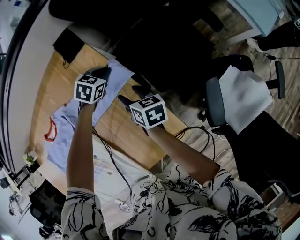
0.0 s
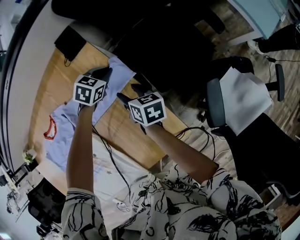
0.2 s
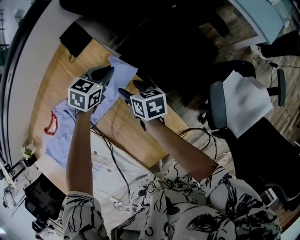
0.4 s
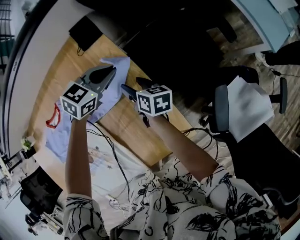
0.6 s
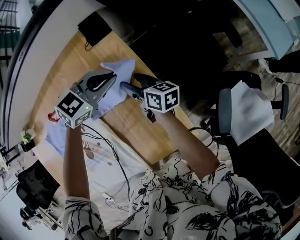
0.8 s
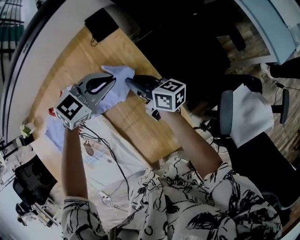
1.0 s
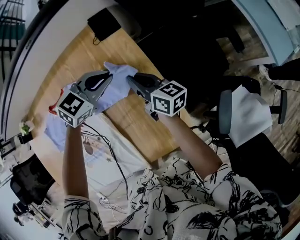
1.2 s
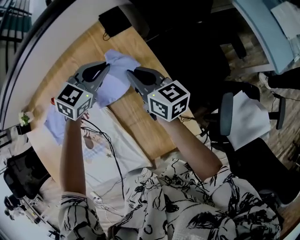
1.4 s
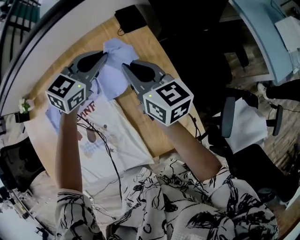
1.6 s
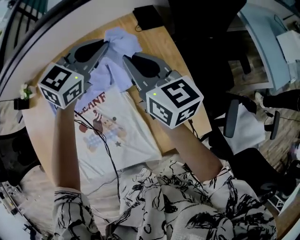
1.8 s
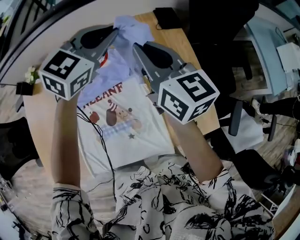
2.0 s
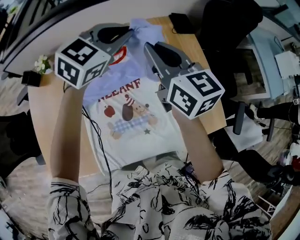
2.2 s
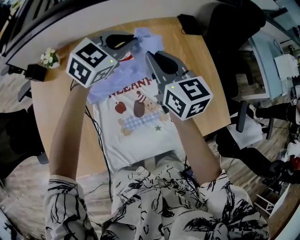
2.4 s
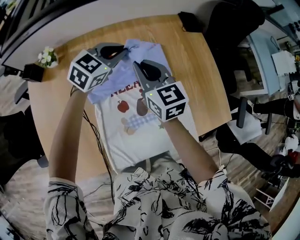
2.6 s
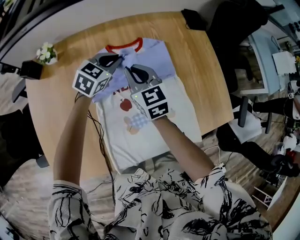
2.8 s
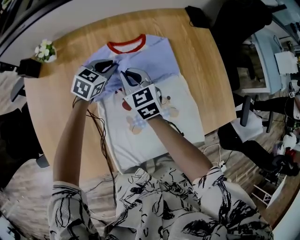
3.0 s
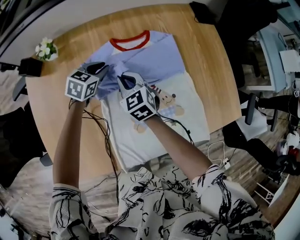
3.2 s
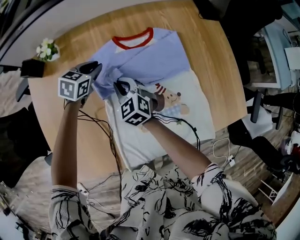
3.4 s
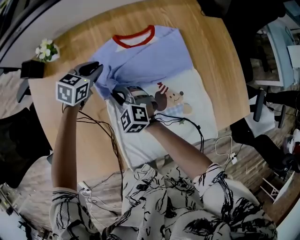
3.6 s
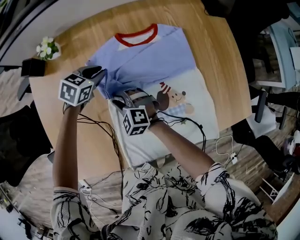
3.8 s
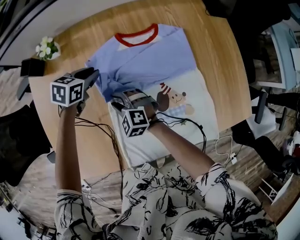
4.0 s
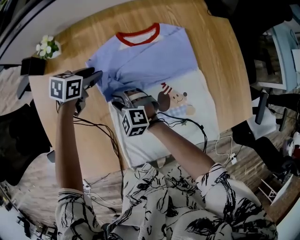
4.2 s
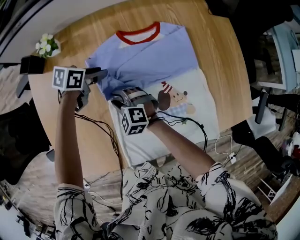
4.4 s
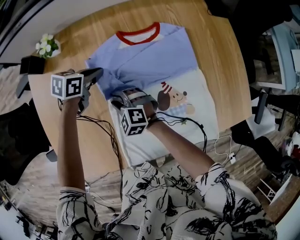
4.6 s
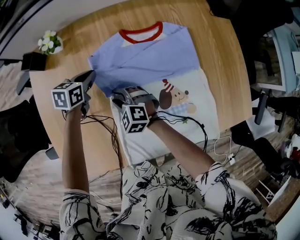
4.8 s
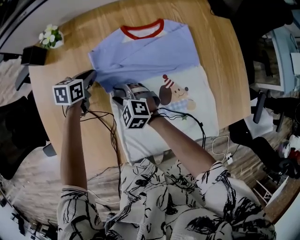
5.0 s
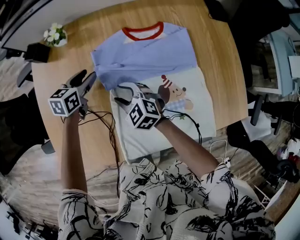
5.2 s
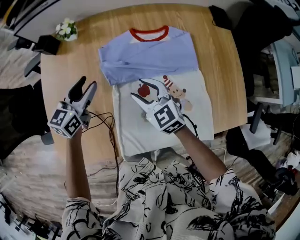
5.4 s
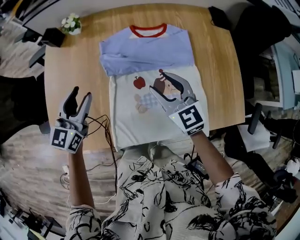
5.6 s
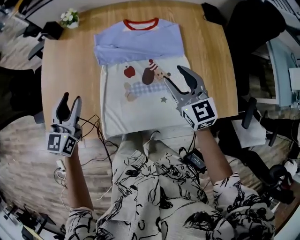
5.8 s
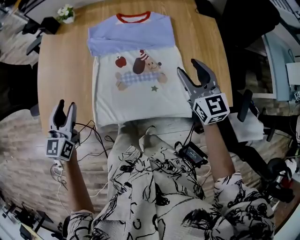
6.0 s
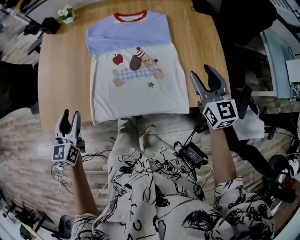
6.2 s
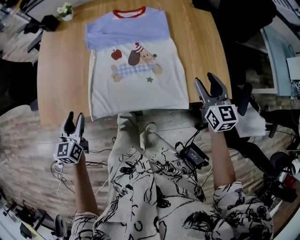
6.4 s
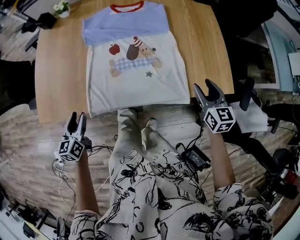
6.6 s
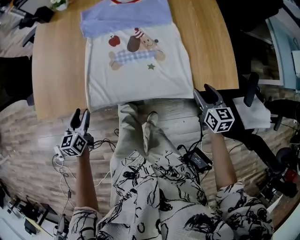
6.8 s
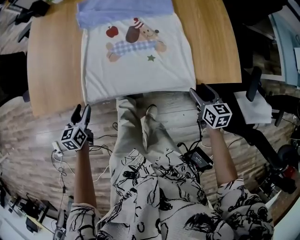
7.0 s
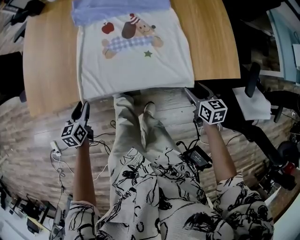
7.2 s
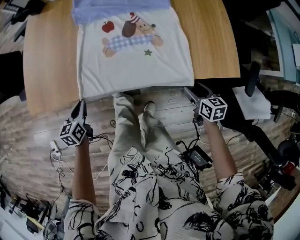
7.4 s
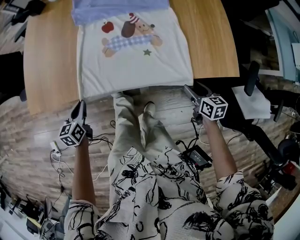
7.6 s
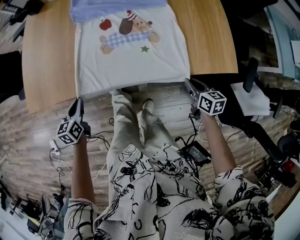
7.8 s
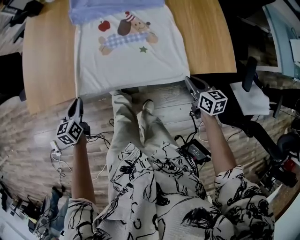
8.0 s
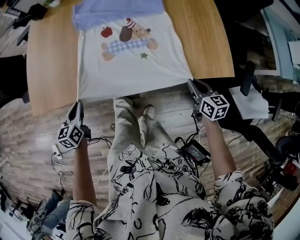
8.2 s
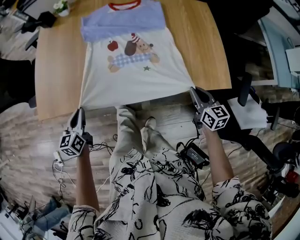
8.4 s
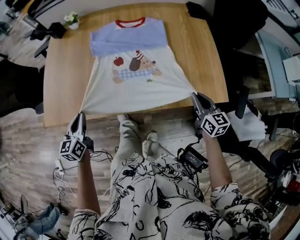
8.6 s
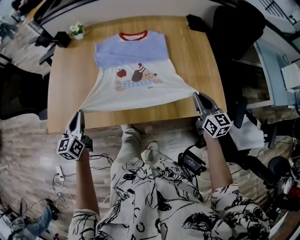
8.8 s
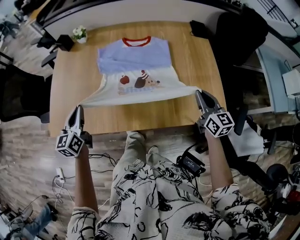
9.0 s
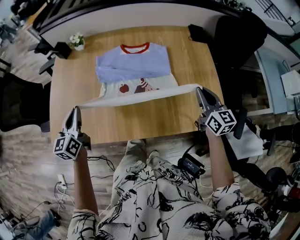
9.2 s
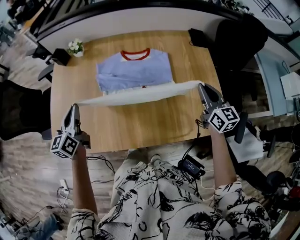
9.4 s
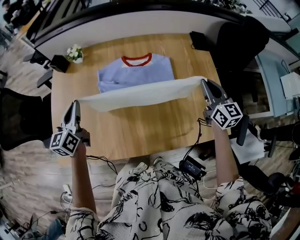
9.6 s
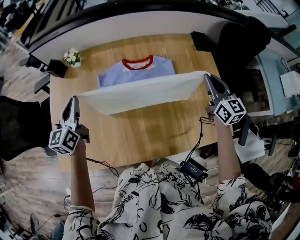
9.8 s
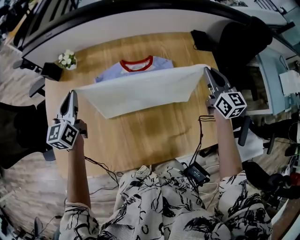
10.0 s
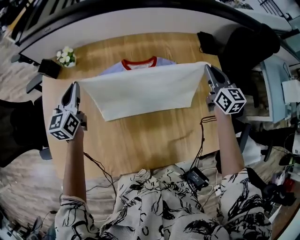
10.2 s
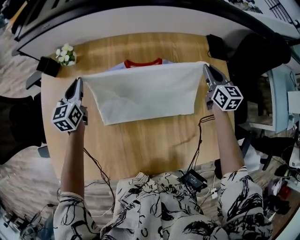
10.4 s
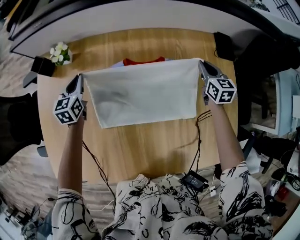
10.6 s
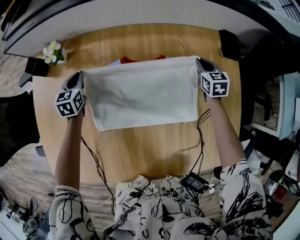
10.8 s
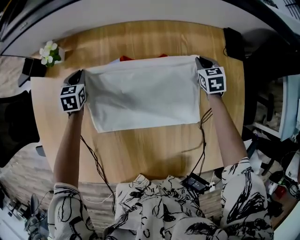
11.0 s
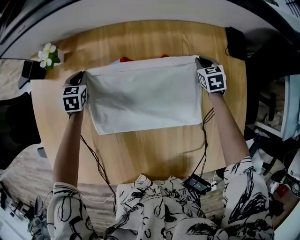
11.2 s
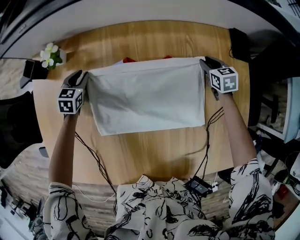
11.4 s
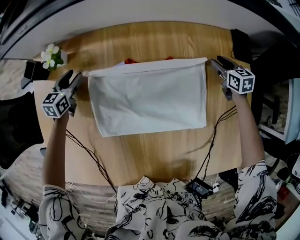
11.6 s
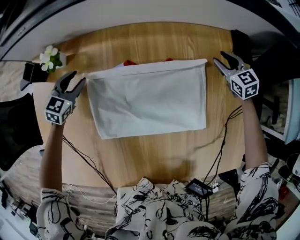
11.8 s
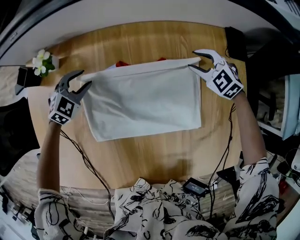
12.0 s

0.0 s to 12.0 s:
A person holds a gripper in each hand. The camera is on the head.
0.0 to 1.6 s: The two grippers go roughly 30 cm upward and to the left. The right gripper swivels about 40 degrees, and closes its fingers; the left gripper tips its fingers upward by some 30 degrees.
1.6 to 3.0 s: Both grippers are carried to the left, approximately 50 cm. The right gripper rotates roughly 40 degrees.
3.0 to 4.4 s: The right gripper shifts approximately 20 cm downward, to the left and backward, rotates approximately 40 degrees, and opens its fingers; the left gripper travels to the left and downward by roughly 10 cm, and rotates some 40 degrees.
4.4 to 6.0 s: The right gripper shifts about 40 cm to the right and upward, and swivels about 50 degrees. The left gripper is displaced backward and upward by some 40 cm, rotates roughly 60 degrees, and closes, then opens again.
6.0 to 7.6 s: Both grippers travel together downward and backward, approximately 30 cm. The right gripper turns by about 40 degrees. The left gripper changes its angle by some 30 degrees, and closes up.
7.6 to 9.0 s: The two grippers go some 30 cm upward and forward. The left gripper changes its angle by about 30 degrees. The right gripper changes its angle by some 30 degrees, and closes its fingers.
9.0 to 10.4 s: The two grippers go approximately 40 cm forward.
10.4 to 12.0 s: The right gripper is displaced downward, forward and to the left by approximately 20 cm, twists about 50 degrees counterclockwise, seen from behind, and opens up. Meanwhile the left gripper goes some 20 cm downward, forward and to the right, twists some 50 degrees clockwise, seen from behind, and opens.

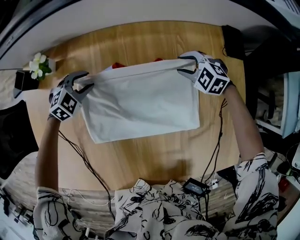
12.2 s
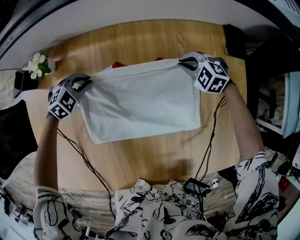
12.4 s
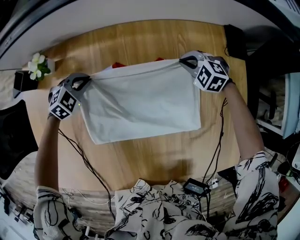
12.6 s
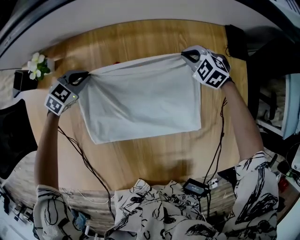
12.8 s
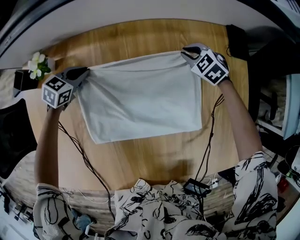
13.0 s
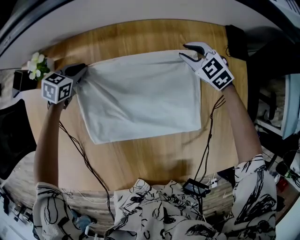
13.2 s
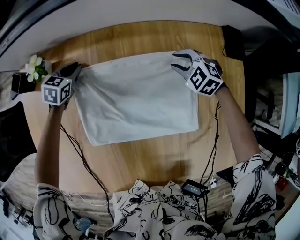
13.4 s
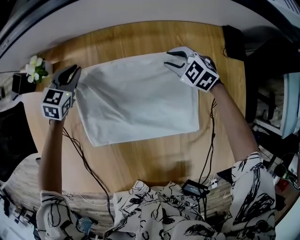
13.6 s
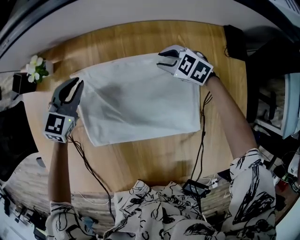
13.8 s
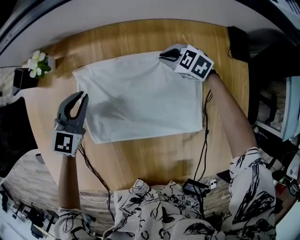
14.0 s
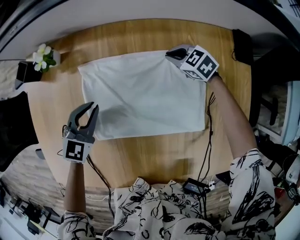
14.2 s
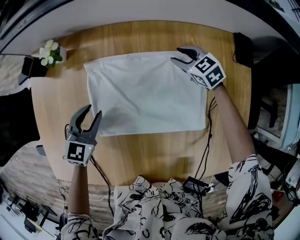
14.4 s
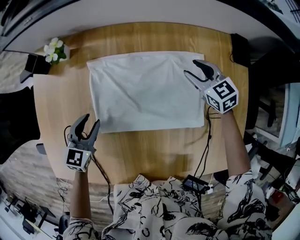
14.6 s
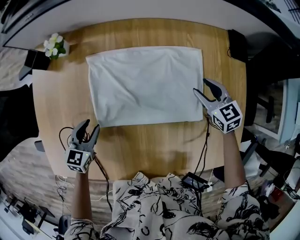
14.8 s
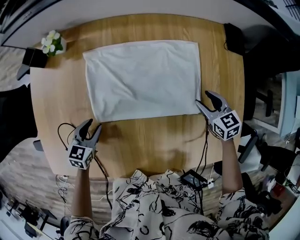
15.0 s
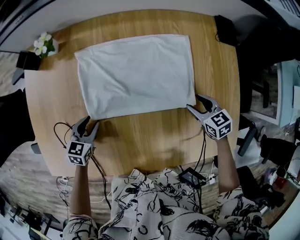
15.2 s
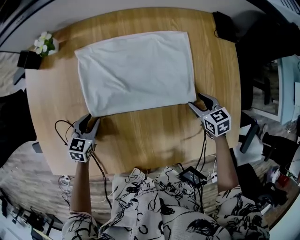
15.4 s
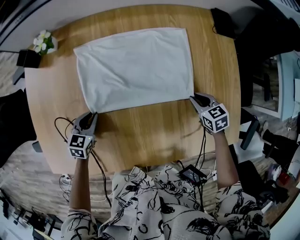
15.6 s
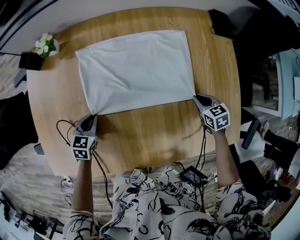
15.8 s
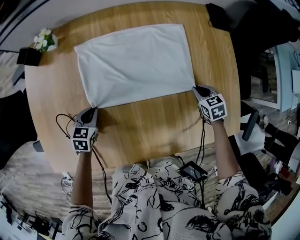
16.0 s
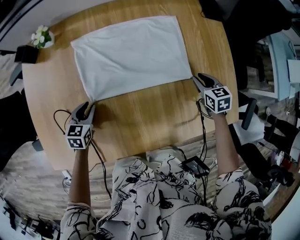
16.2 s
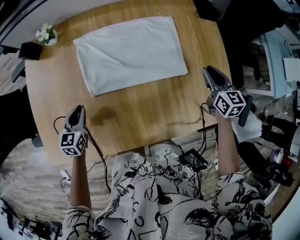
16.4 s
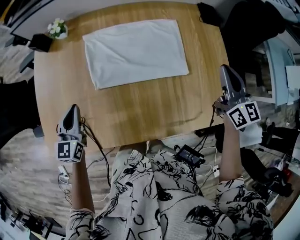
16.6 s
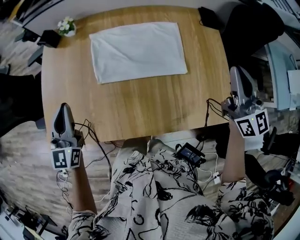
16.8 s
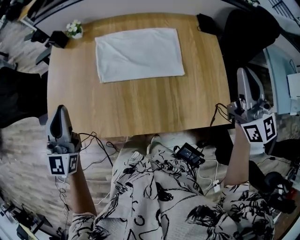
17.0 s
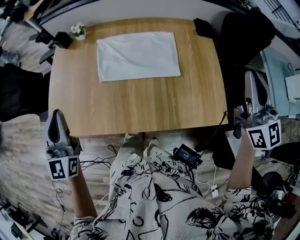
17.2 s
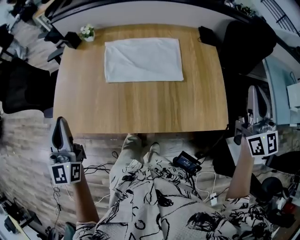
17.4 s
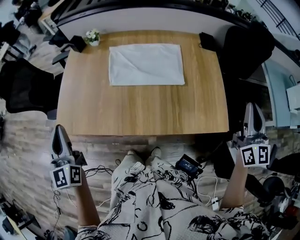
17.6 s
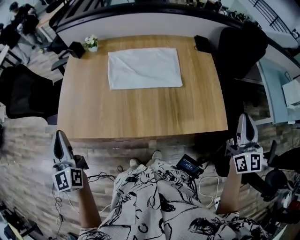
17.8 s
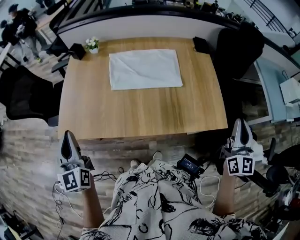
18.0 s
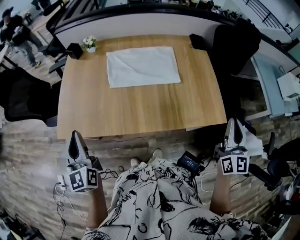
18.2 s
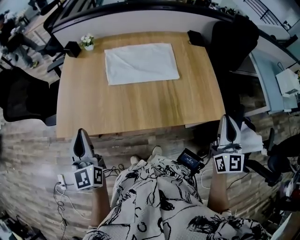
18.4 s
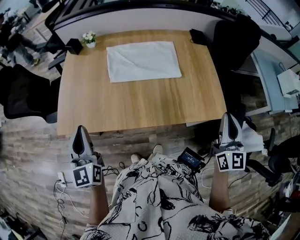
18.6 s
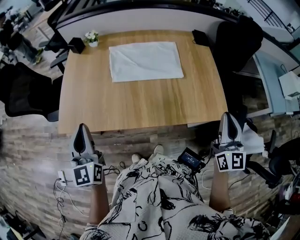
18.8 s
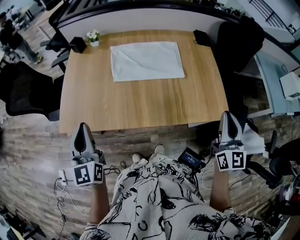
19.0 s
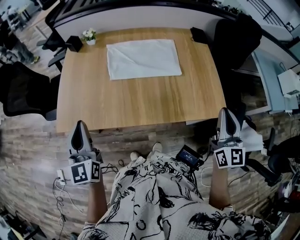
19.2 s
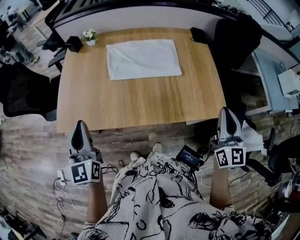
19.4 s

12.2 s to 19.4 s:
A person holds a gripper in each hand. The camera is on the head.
12.2 to 13.6 s: The left gripper heads forward, covering about 5 cm, and changes its angle by approximately 40 degrees. Meanwhile the right gripper closes and opens again.
13.6 to 15.0 s: The two grippers go some 25 cm backward. The right gripper turns by roughly 40 degrees, and closes, then reopens.
15.0 to 16.6 s: Both grippers travel together upward and backward, approximately 20 cm. The right gripper tilts its fingers some 30 degrees upward, and closes up. Meanwhile the left gripper rotates about 30 degrees, and closes.
16.6 to 18.0 s: The right gripper travels backward by approximately 35 cm, and swivels roughly 20 degrees. Meanwhile the left gripper goes some 35 cm backward and upward, and turns by approximately 30 degrees.
18.0 to 19.4 s: The right gripper heads to the left, covering some 10 cm.

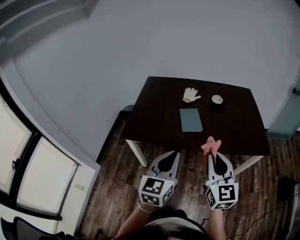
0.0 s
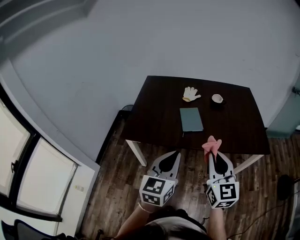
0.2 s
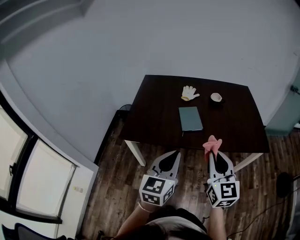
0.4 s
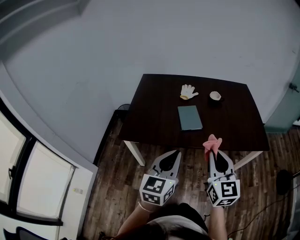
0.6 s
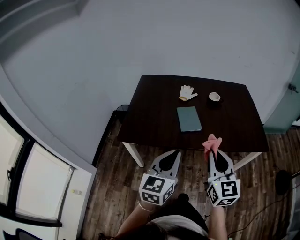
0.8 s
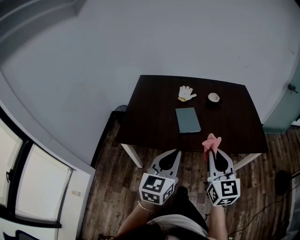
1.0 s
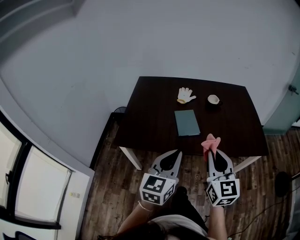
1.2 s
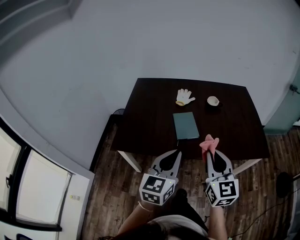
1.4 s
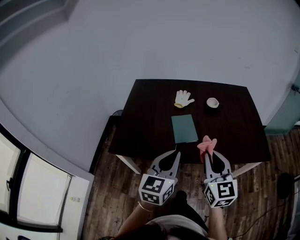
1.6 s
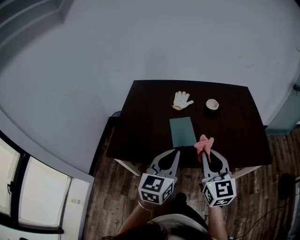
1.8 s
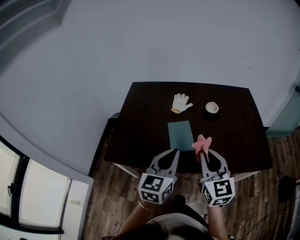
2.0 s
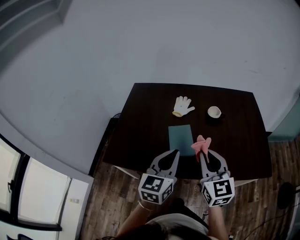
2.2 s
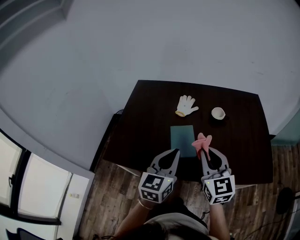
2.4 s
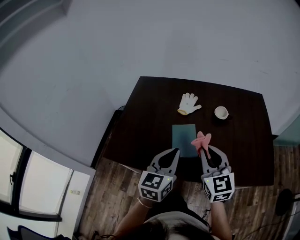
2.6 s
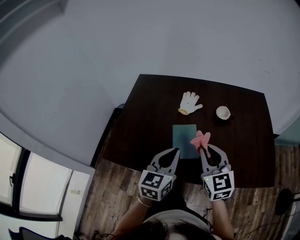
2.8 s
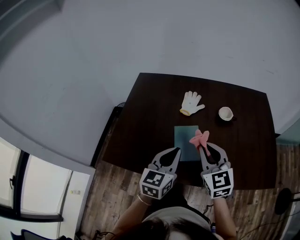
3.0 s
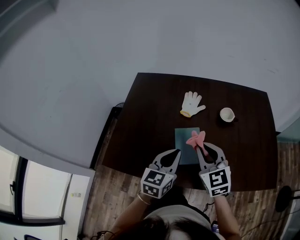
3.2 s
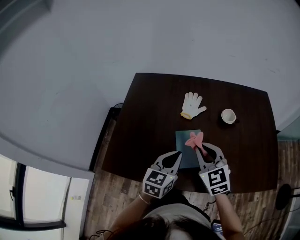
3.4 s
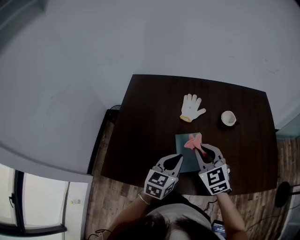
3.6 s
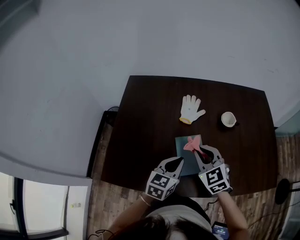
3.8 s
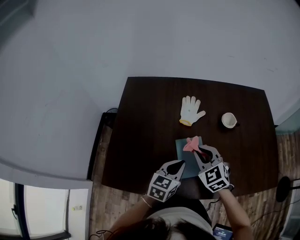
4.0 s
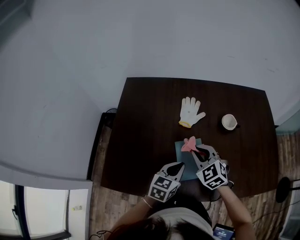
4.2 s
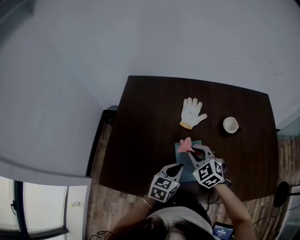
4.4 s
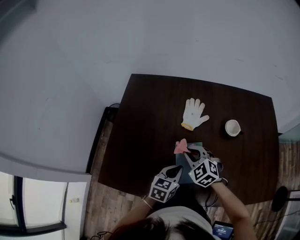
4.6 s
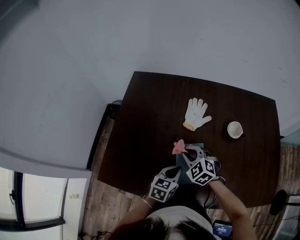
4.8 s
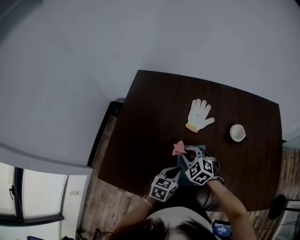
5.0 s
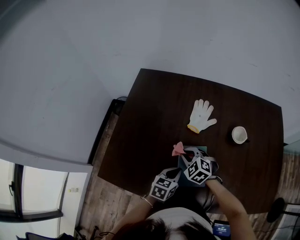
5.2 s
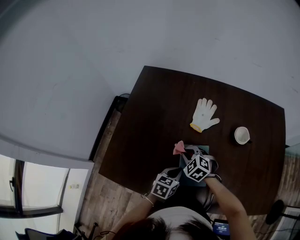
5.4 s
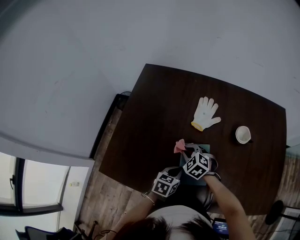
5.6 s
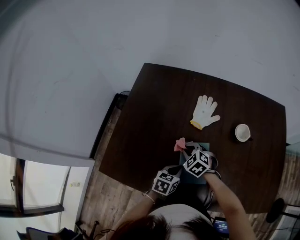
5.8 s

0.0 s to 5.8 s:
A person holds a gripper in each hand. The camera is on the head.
0.0 to 1.4 s: Both grippers travel together forward, about 10 cm.
1.4 to 2.8 s: The grippers both shift forward by roughly 25 cm.
2.8 to 4.4 s: The left gripper travels downward and forward by roughly 20 cm, and rotates approximately 30 degrees; the right gripper goes roughly 25 cm forward, downward and to the left, and turns by about 30 degrees.
4.4 to 5.8 s: The grippers both shift downward by about 10 cm. The right gripper turns by some 20 degrees.
